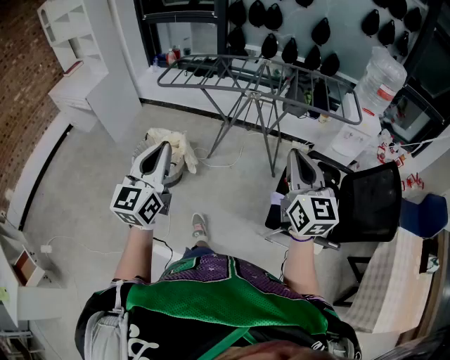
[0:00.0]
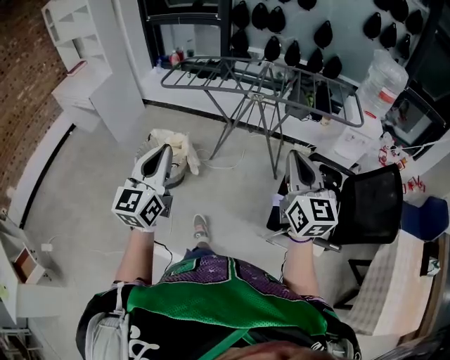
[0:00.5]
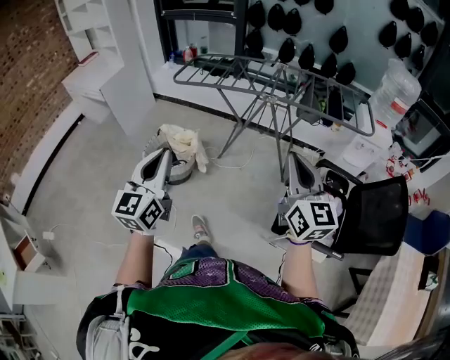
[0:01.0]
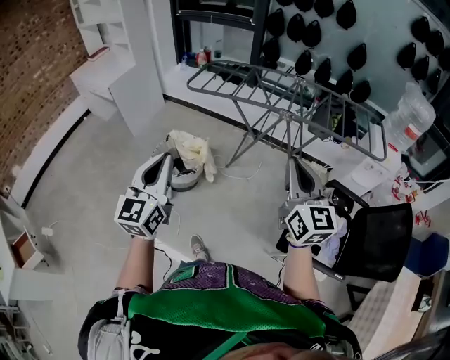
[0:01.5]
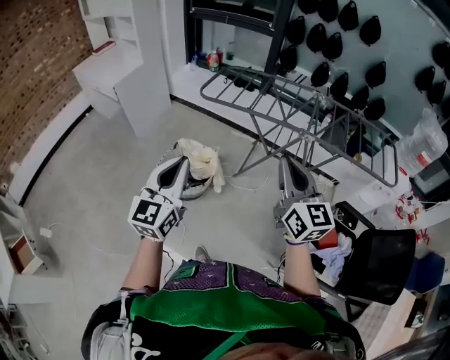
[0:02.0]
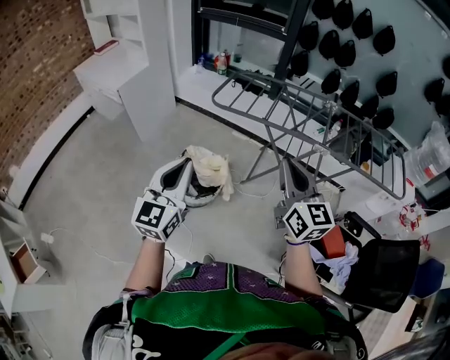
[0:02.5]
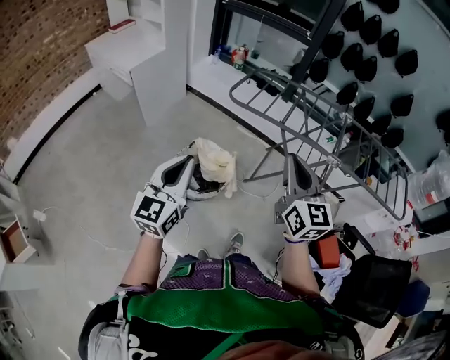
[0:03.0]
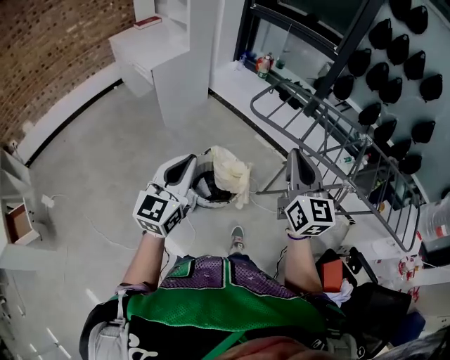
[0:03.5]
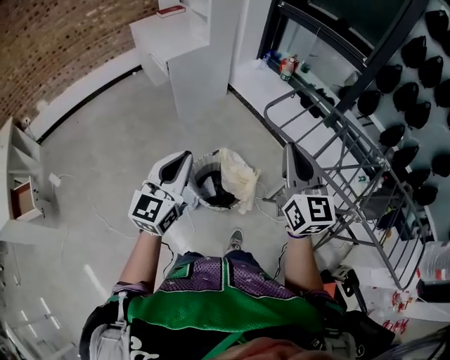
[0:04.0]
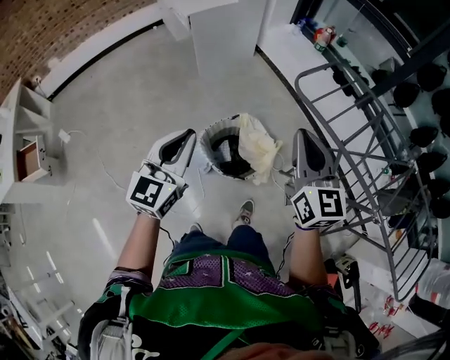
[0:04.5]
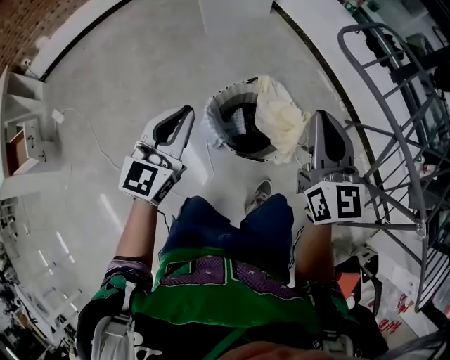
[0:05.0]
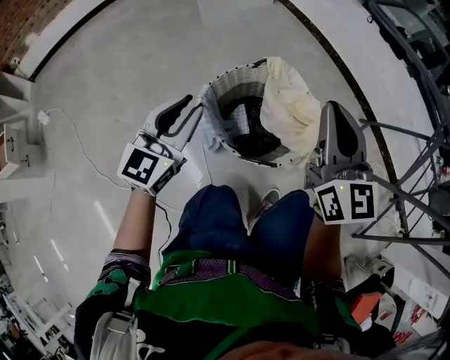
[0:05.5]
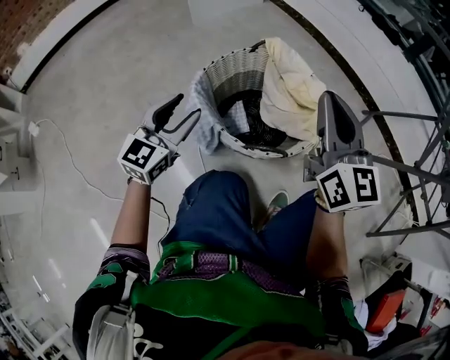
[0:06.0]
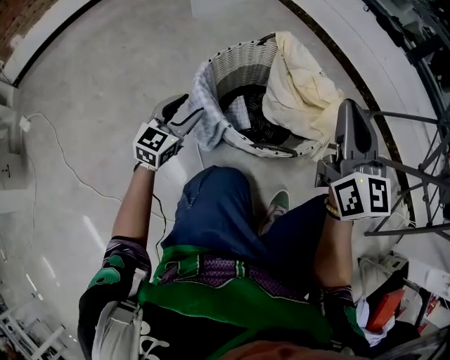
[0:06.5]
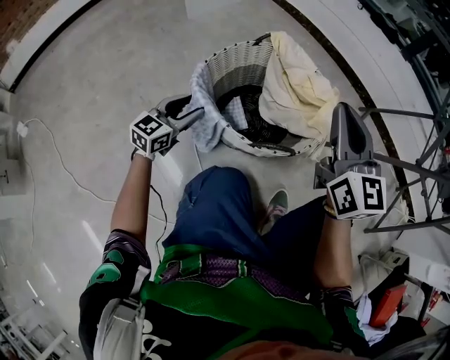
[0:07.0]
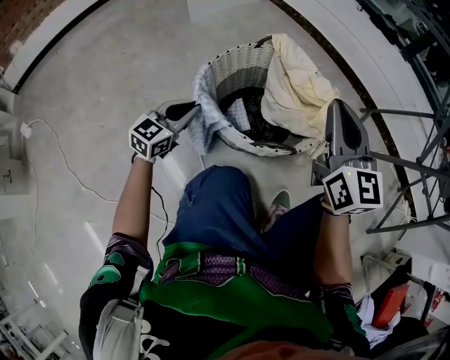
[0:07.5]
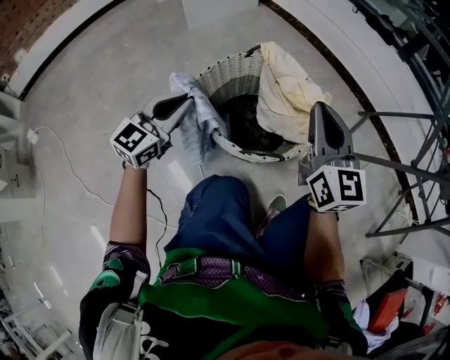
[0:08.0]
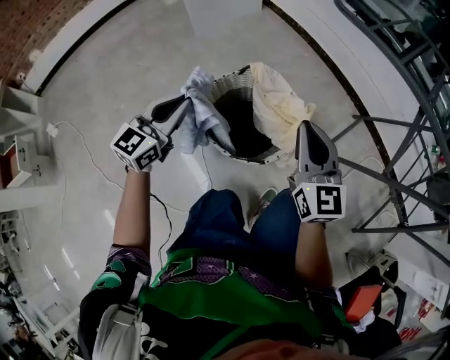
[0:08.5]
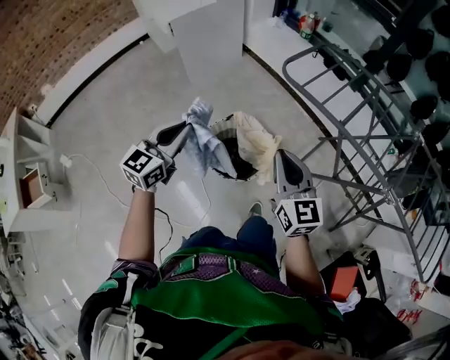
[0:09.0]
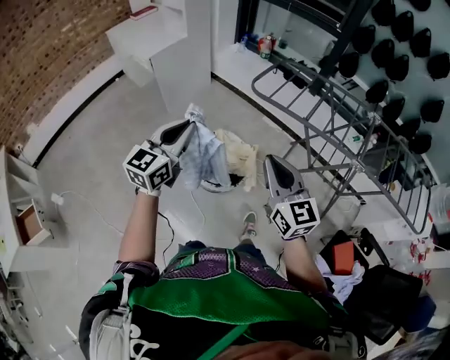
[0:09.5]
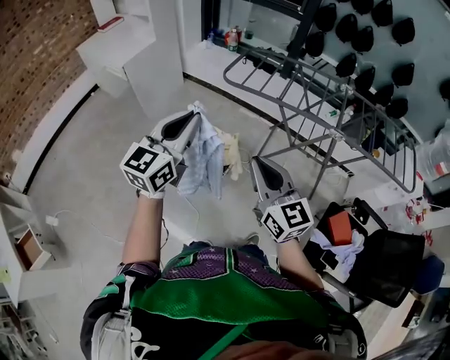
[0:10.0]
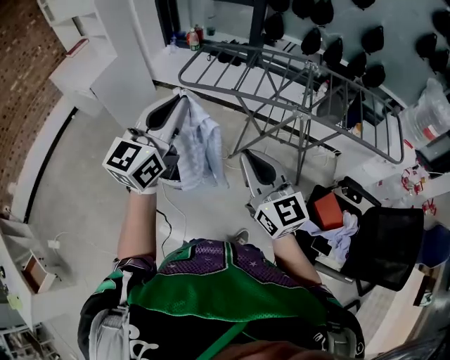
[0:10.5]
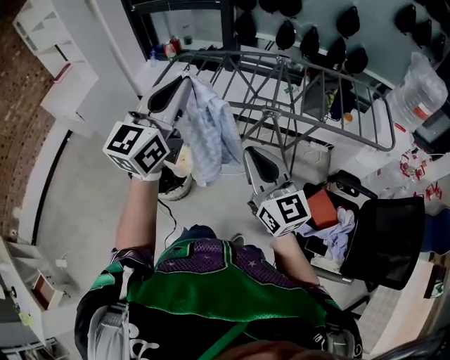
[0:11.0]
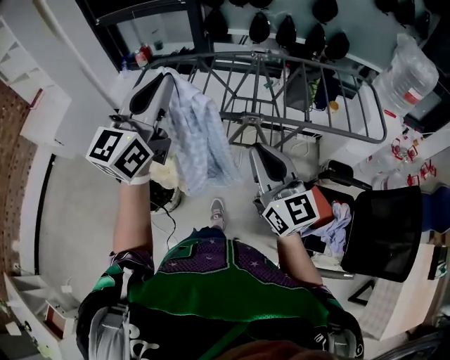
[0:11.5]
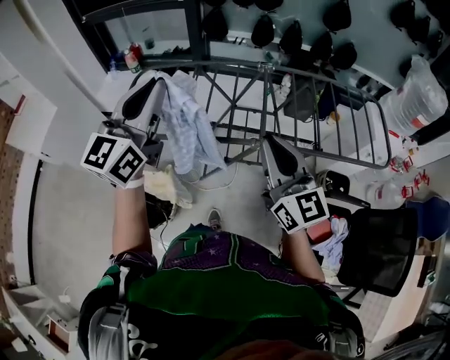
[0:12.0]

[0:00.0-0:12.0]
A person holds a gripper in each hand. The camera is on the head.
0:00.0 to 0:02.0: The two grippers go roughly 25 cm to the left and forward.
0:02.0 to 0:04.0: The grippers both shift forward and to the left by roughly 30 cm.
0:04.0 to 0:06.0: Both grippers move downward, about 60 cm. The left gripper opens.
0:06.0 to 0:08.0: The left gripper moves approximately 15 cm downward and comes back, and closes up.
0:08.0 to 0:10.0: The left gripper travels upward by roughly 70 cm. Meanwhile the right gripper shifts some 60 cm upward and backward.
0:10.0 to 0:12.0: The two grippers travel together, to the right and forward, some 50 cm. The right gripper changes its angle by some 20 degrees.

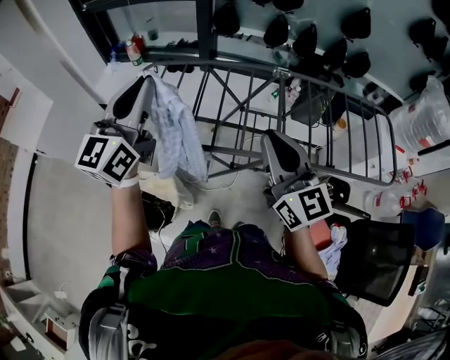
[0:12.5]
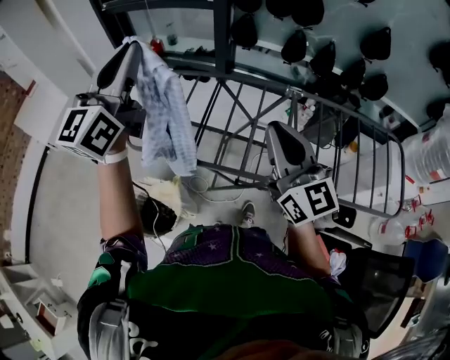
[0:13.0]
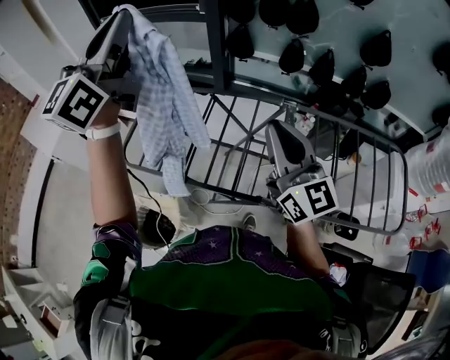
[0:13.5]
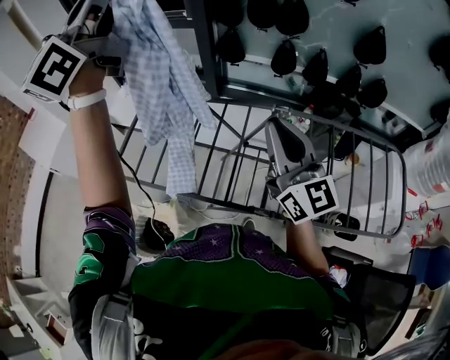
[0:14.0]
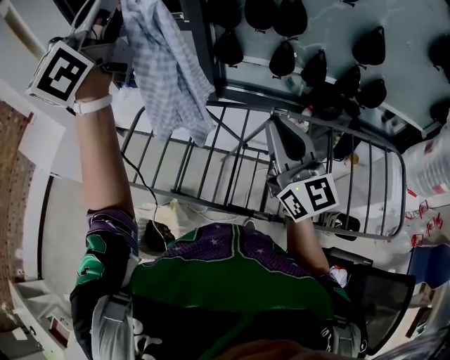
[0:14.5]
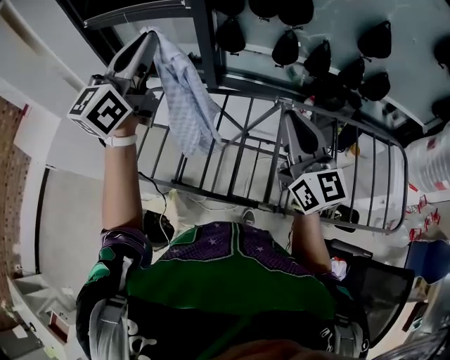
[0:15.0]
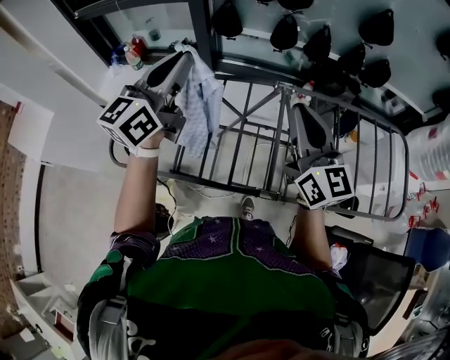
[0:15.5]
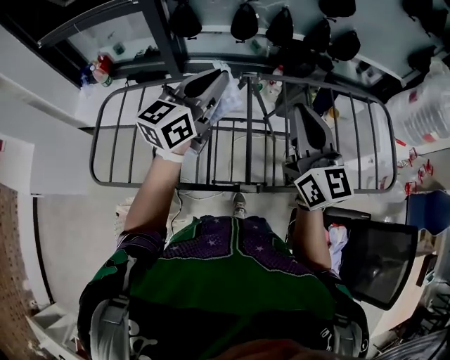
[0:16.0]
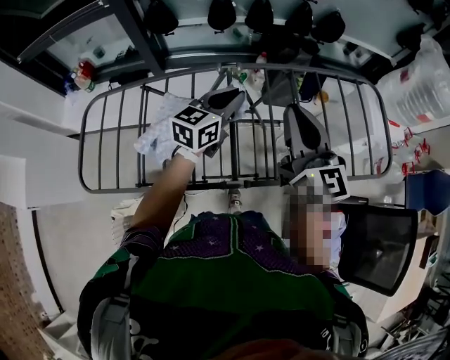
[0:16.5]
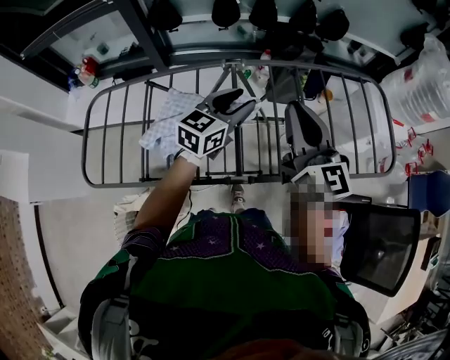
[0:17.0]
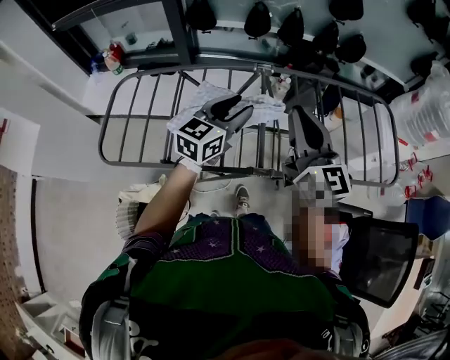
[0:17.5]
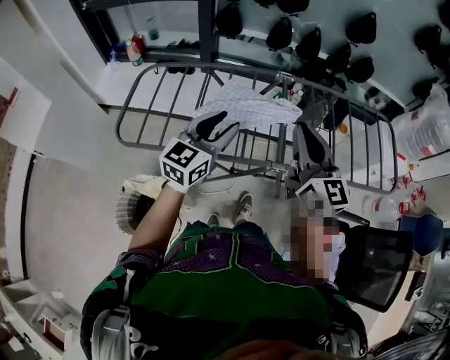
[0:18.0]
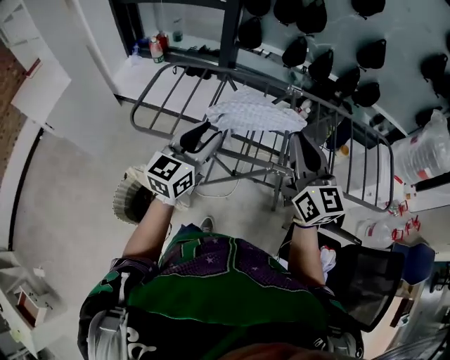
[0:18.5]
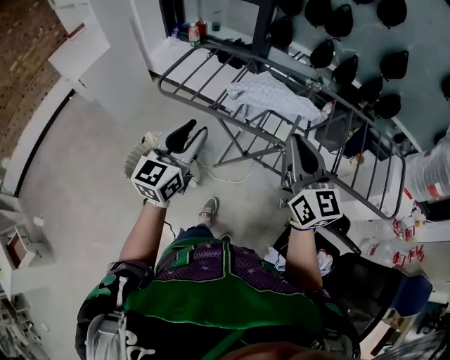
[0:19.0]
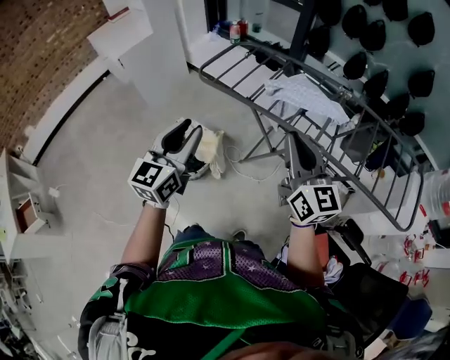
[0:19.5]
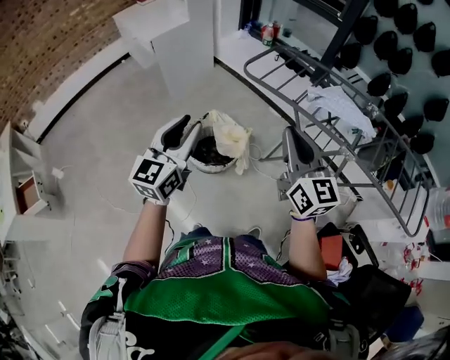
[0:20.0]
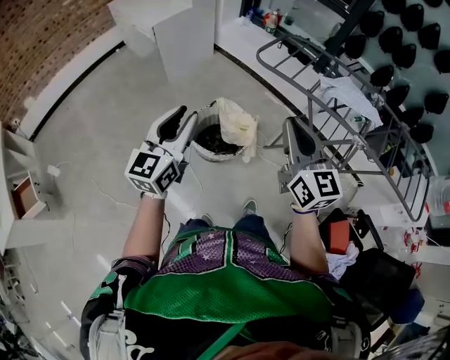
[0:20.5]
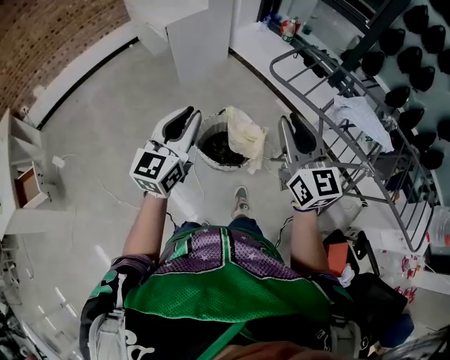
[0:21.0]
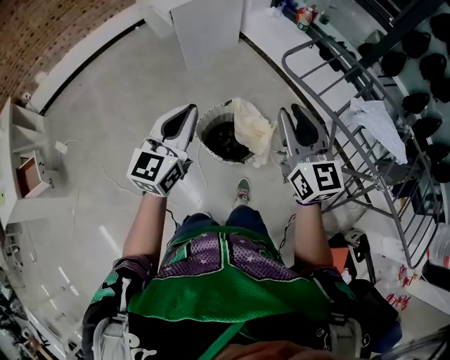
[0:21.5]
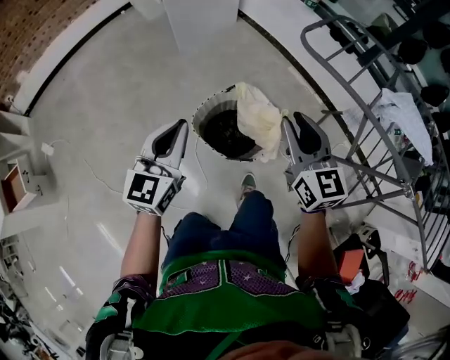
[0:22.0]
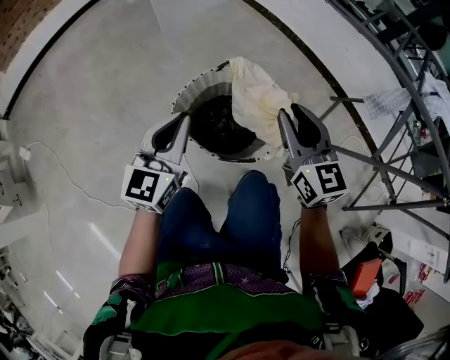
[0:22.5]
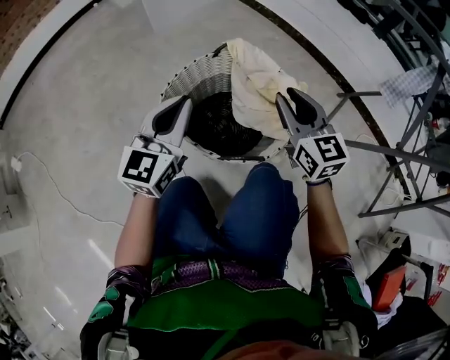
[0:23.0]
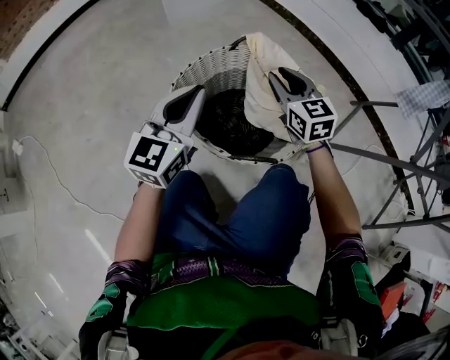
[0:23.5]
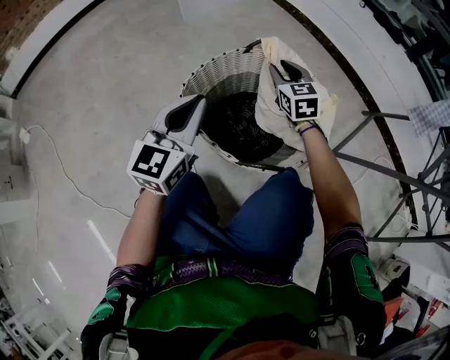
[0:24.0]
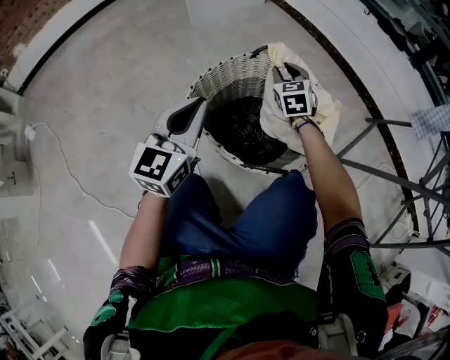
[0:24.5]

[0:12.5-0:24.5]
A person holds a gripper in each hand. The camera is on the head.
0:12.5 to 0:14.5: The right gripper goes some 20 cm forward and to the right. Meanwhile the left gripper is displaced upward and forward by some 35 cm.
0:14.5 to 0:16.5: The left gripper moves downward, approximately 50 cm, and points its fingers some 40 degrees further downward, while the right gripper shifts by approximately 20 cm, and rotates some 20 degrees.
0:16.5 to 0:18.5: The right gripper moves backward and to the left, approximately 25 cm. The left gripper goes about 40 cm backward and to the left, rotates about 30 degrees, and opens.
0:18.5 to 0:20.5: Both grippers are carried roughly 50 cm. The left gripper rotates approximately 40 degrees, while the right gripper changes its angle by approximately 30 degrees.
0:20.5 to 0:22.5: Both grippers move downward and forward, about 50 cm. The left gripper closes its fingers, while the right gripper opens.
0:22.5 to 0:24.5: The right gripper travels downward and forward by approximately 35 cm, and swivels some 30 degrees. Meanwhile the left gripper moves downward, approximately 15 cm.

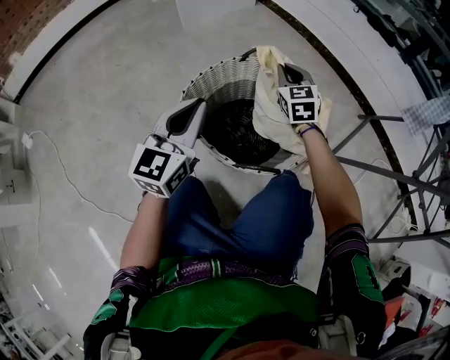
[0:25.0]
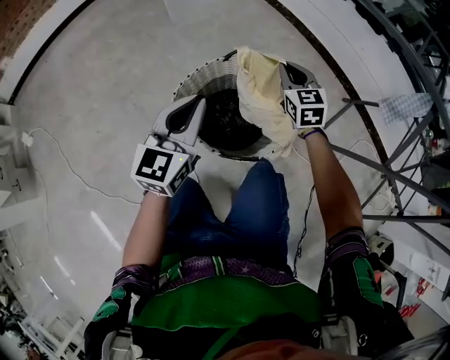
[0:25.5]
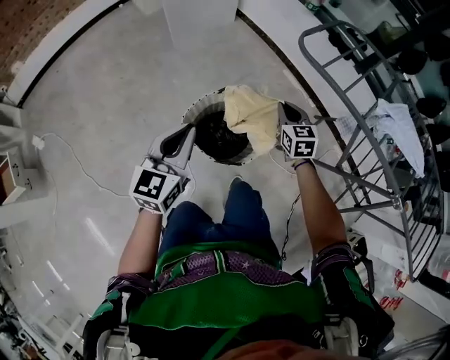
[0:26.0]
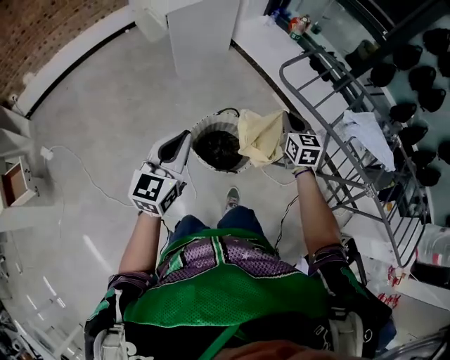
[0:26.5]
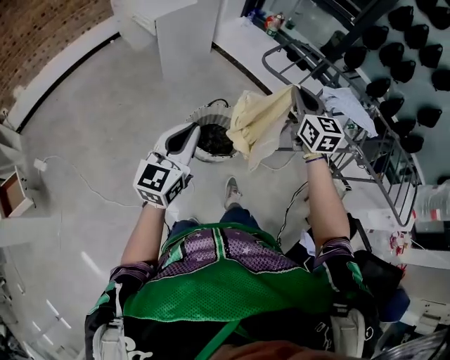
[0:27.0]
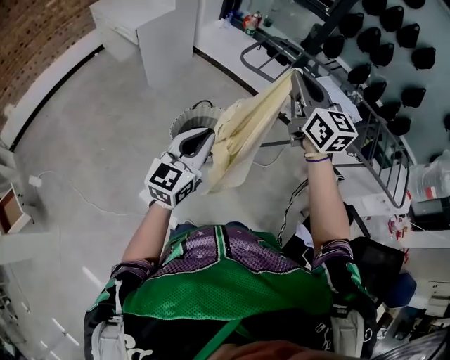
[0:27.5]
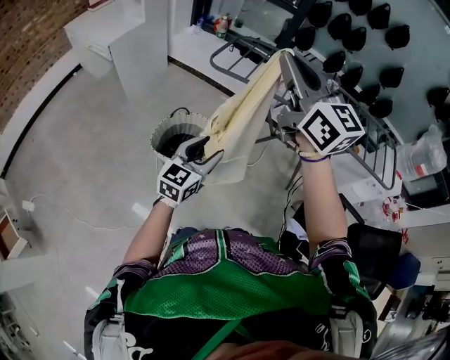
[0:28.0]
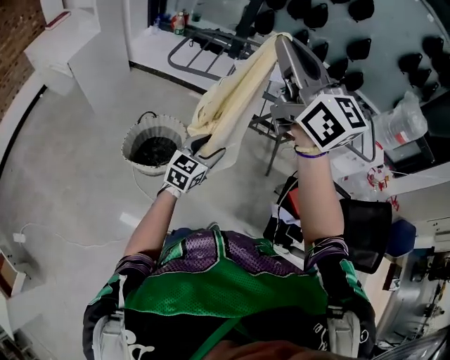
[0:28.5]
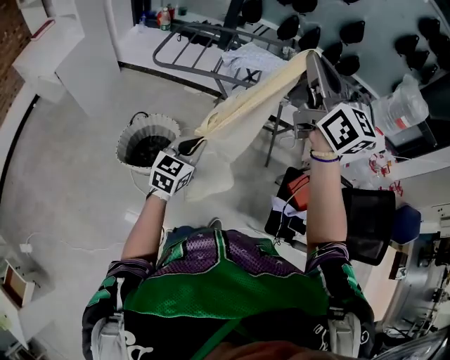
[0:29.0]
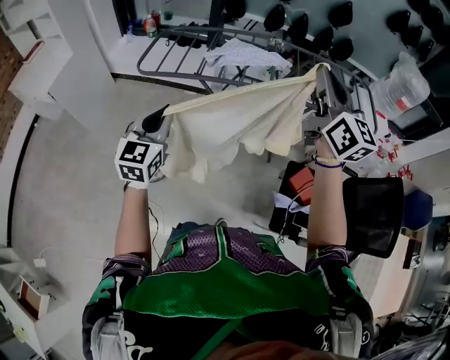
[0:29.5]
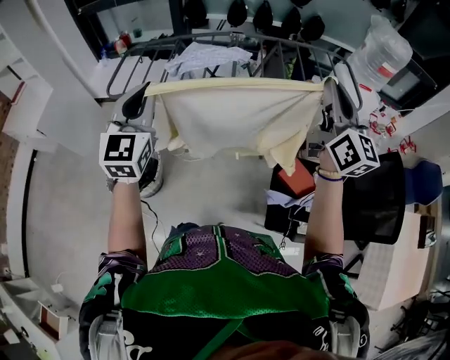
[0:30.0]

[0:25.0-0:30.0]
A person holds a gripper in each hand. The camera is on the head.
0:25.0 to 0:27.5: The grippers both shift upward and backward by about 70 cm. The right gripper changes its angle by about 30 degrees. The left gripper turns by some 20 degrees.
0:27.5 to 0:30.0: The right gripper travels upward and back again, some 15 cm each way, and swivels approximately 40 degrees. The left gripper ends up approximately 40 cm from where it was, rotates roughly 30 degrees, and opens, then closes again.
